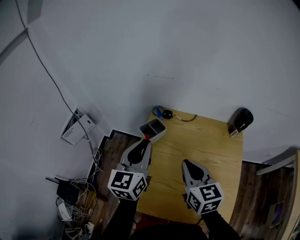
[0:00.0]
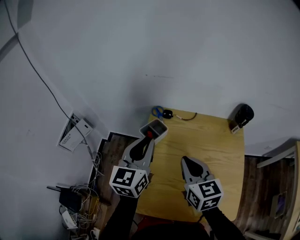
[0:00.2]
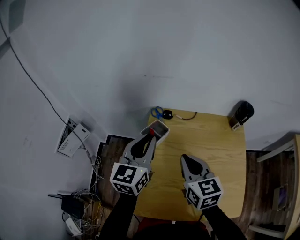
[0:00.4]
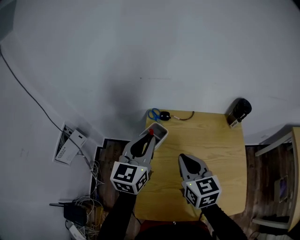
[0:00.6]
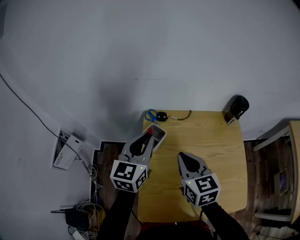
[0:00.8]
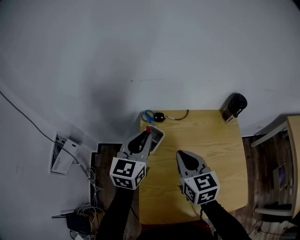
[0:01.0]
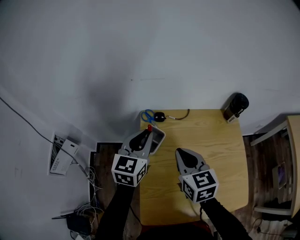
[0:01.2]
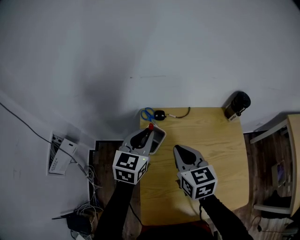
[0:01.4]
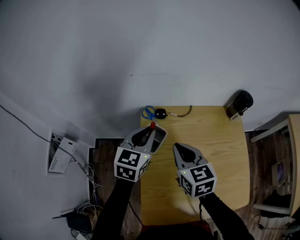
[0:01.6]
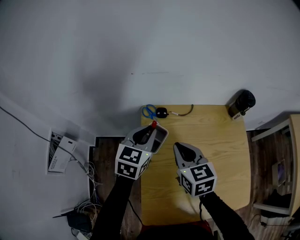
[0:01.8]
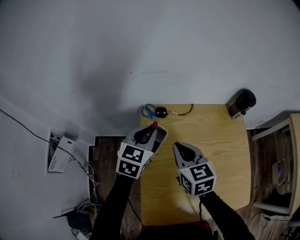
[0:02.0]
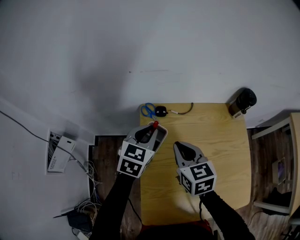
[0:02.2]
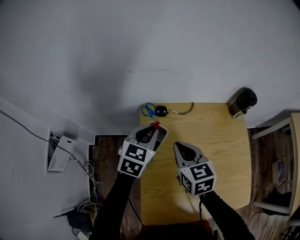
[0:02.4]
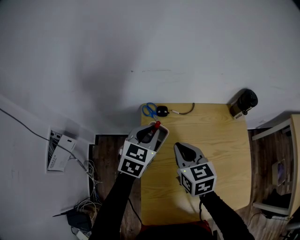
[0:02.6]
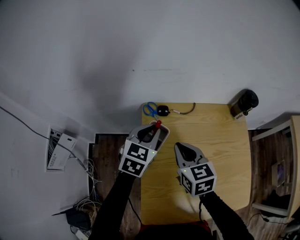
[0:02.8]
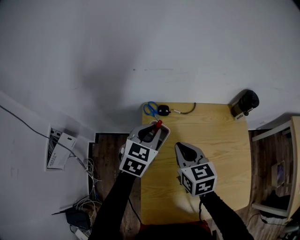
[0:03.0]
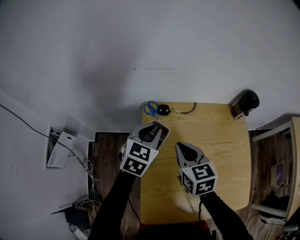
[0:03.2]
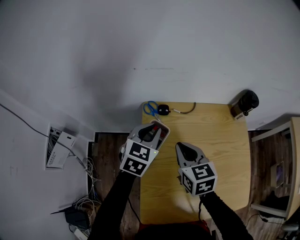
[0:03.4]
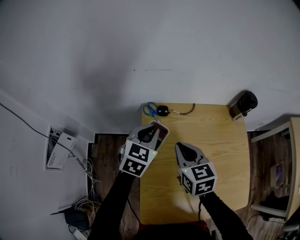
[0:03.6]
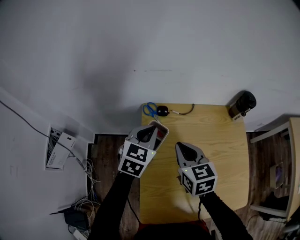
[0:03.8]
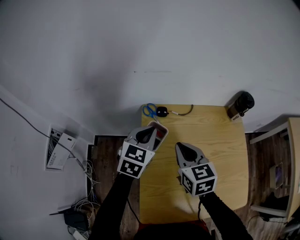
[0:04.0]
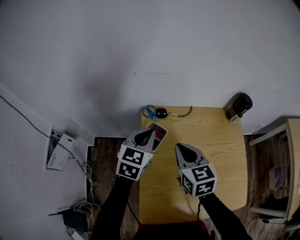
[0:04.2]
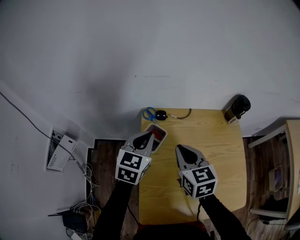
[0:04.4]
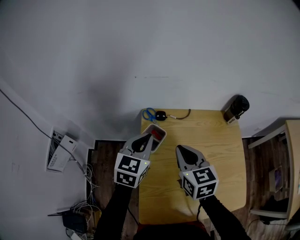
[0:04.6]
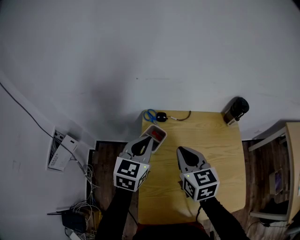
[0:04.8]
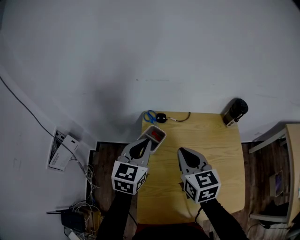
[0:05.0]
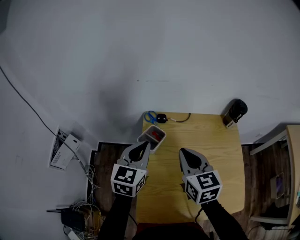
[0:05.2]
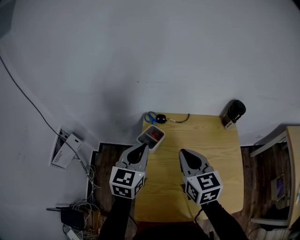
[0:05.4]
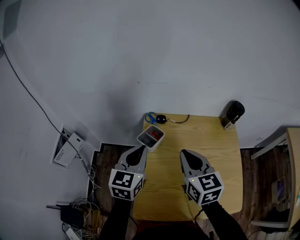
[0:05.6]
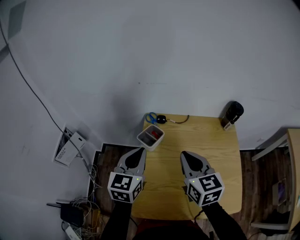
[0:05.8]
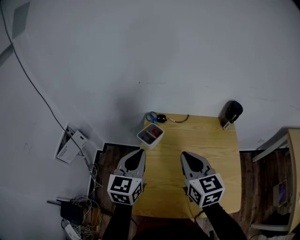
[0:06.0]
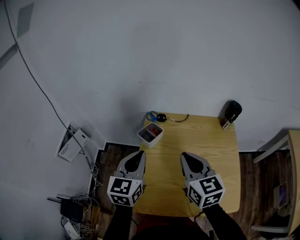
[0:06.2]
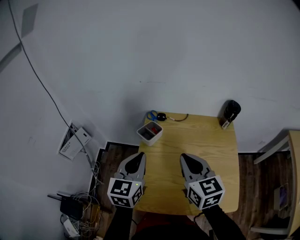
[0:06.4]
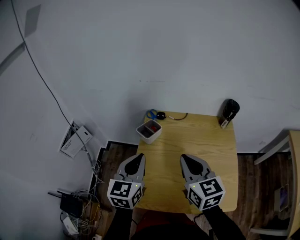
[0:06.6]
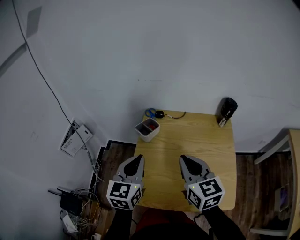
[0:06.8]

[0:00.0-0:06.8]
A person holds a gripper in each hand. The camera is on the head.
0:00.0 to 0:01.4: The left gripper travels forward and downward by about 15 cm, and swivels approximately 30 degrees. The right gripper travels forward and to the left by some 15 cm.
0:01.4 to 0:04.0: The grippers make only small movements.
0:04.0 to 0:05.4: The left gripper heads backward and upward, covering some 10 cm; the right gripper heads upward and backward, covering roughly 10 cm.
0:05.4 to 0:06.8: The left gripper is displaced backward by roughly 15 cm, while the right gripper heads backward and to the right, covering roughly 10 cm.

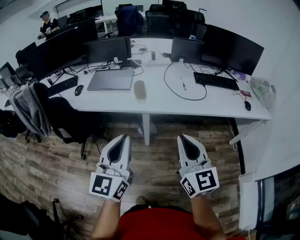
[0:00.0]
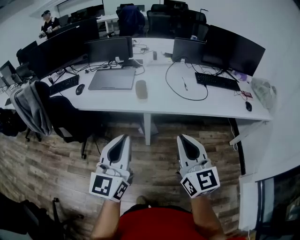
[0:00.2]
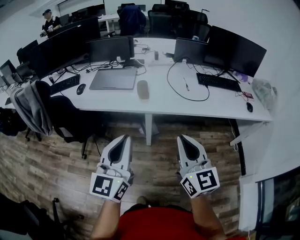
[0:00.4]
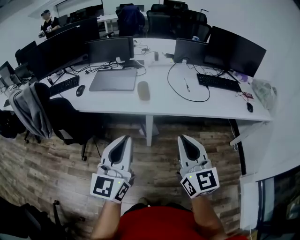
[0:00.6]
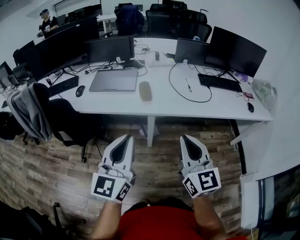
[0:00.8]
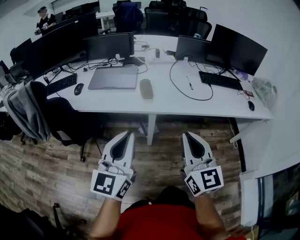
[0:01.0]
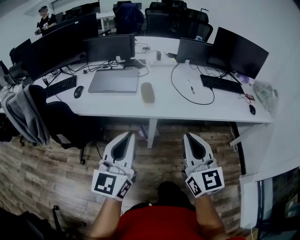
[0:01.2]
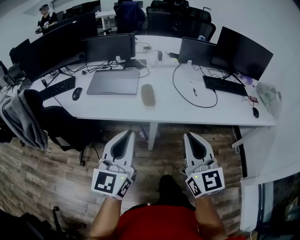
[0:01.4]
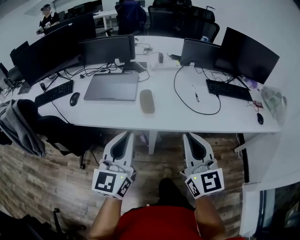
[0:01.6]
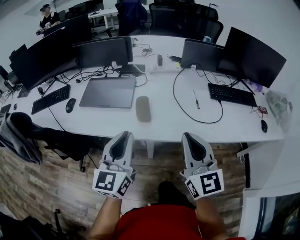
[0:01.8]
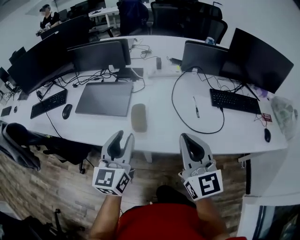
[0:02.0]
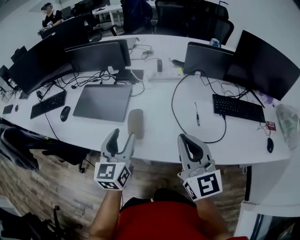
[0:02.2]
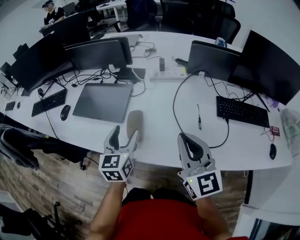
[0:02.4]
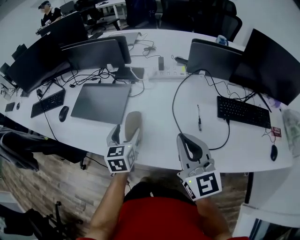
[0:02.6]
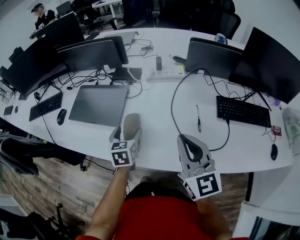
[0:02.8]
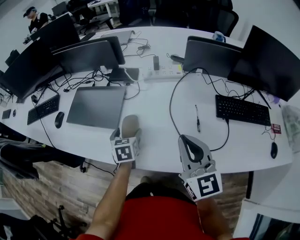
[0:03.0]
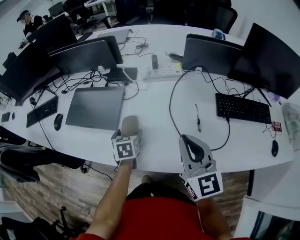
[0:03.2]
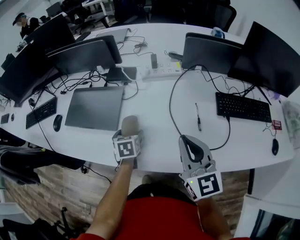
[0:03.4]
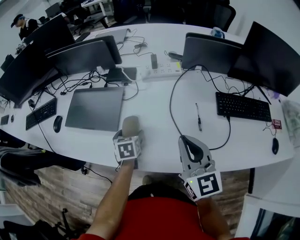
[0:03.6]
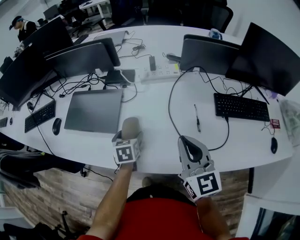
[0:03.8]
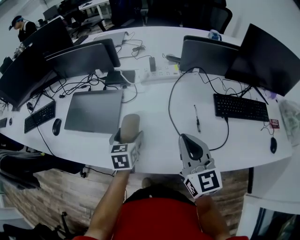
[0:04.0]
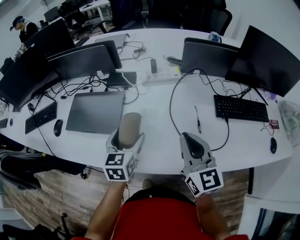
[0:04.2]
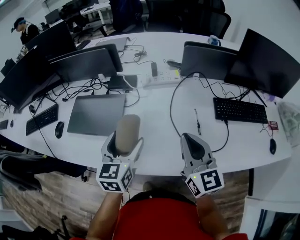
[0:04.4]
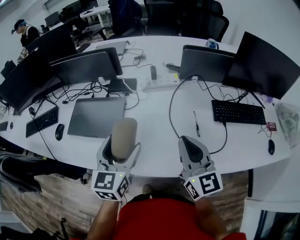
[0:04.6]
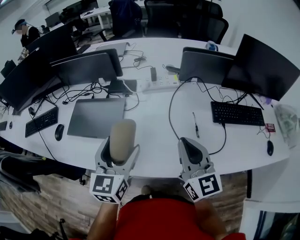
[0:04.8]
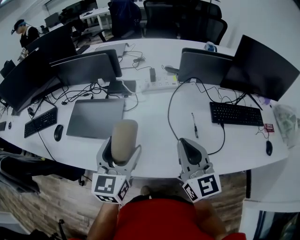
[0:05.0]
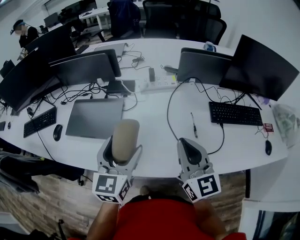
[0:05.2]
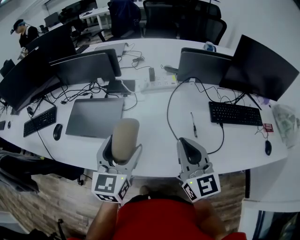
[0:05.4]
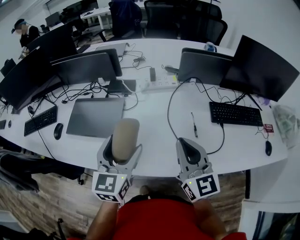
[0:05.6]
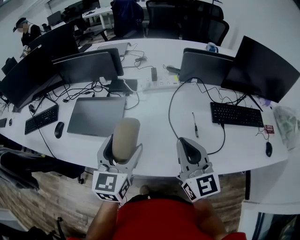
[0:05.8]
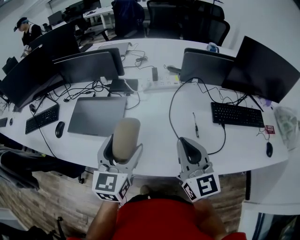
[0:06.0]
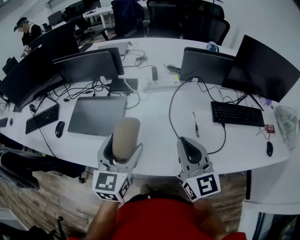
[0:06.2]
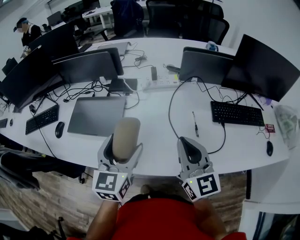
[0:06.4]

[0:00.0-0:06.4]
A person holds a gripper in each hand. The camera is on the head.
0:00.0 to 0:01.6: Both grippers move forward, approximately 15 cm.
0:01.6 to 0:03.2: The right gripper shifts approximately 30 cm forward and to the right. Meanwhile the left gripper heads forward and downward, covering some 40 cm, angles its fingers downward, by some 50 degrees, and opens its fingers.
0:03.2 to 0:04.8: The left gripper moves upward, some 20 cm, and tilts its fingers some 40 degrees upward.
0:04.8 to 0:06.4: Both grippers stay put.

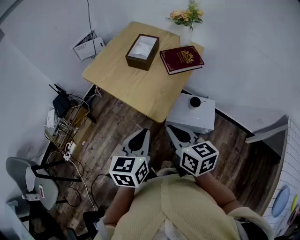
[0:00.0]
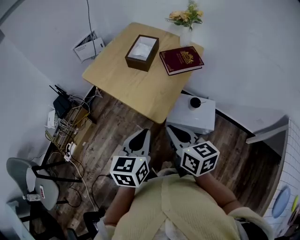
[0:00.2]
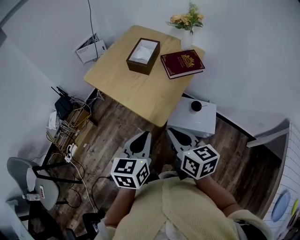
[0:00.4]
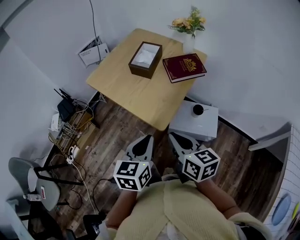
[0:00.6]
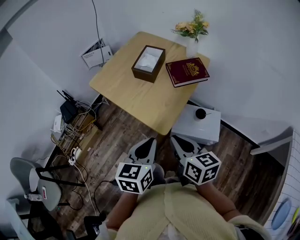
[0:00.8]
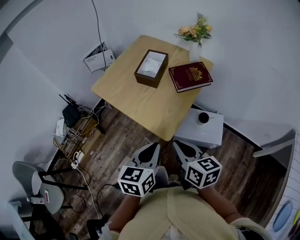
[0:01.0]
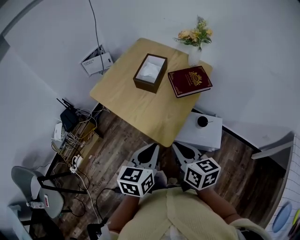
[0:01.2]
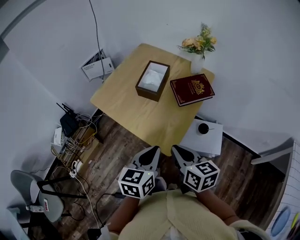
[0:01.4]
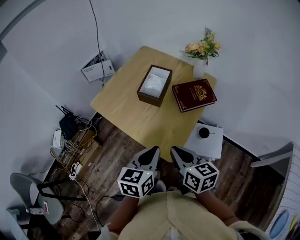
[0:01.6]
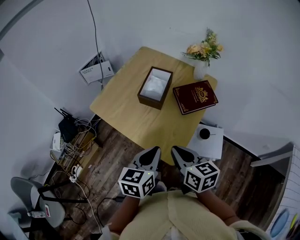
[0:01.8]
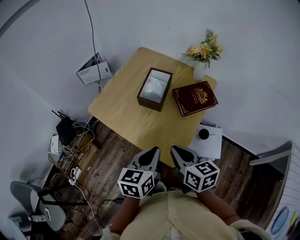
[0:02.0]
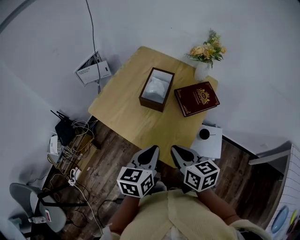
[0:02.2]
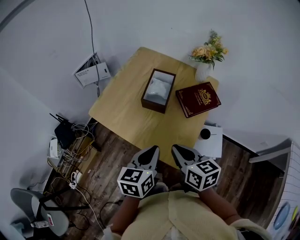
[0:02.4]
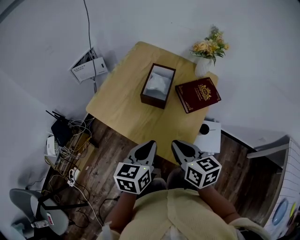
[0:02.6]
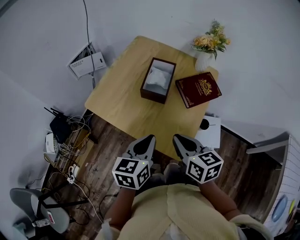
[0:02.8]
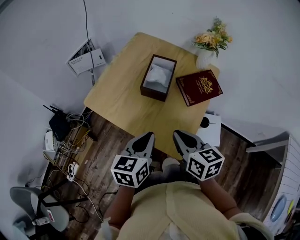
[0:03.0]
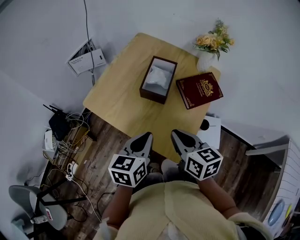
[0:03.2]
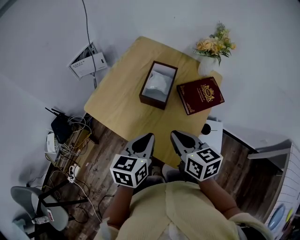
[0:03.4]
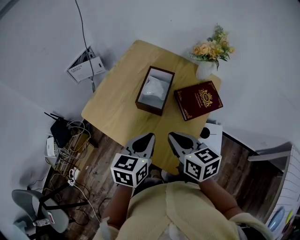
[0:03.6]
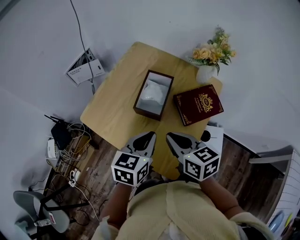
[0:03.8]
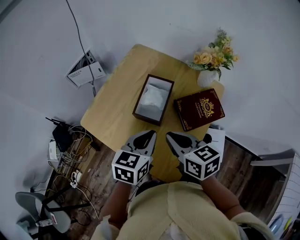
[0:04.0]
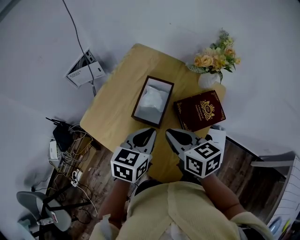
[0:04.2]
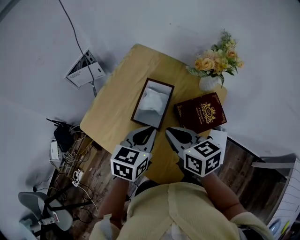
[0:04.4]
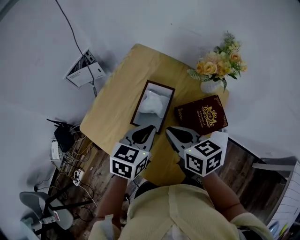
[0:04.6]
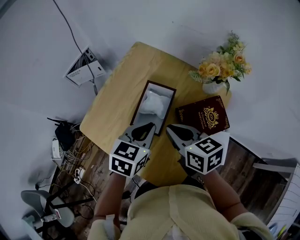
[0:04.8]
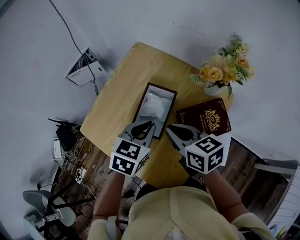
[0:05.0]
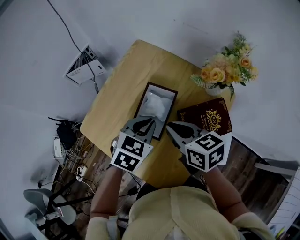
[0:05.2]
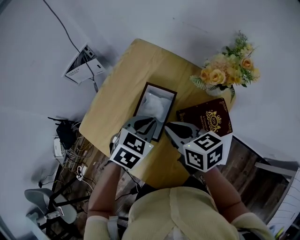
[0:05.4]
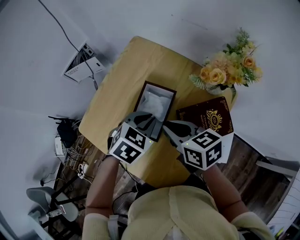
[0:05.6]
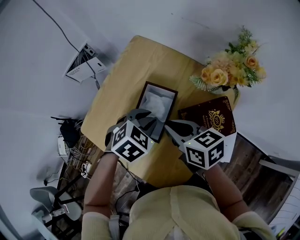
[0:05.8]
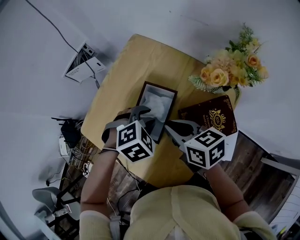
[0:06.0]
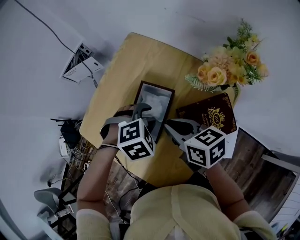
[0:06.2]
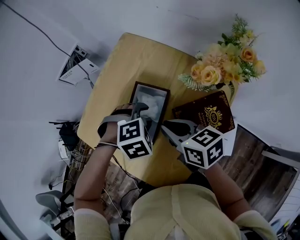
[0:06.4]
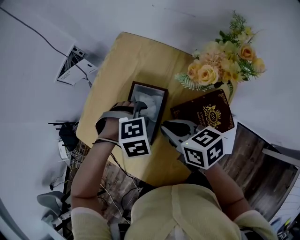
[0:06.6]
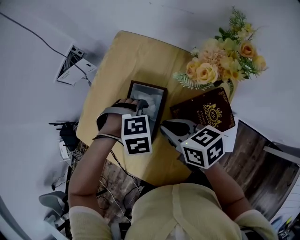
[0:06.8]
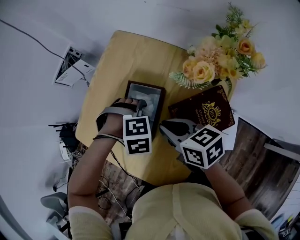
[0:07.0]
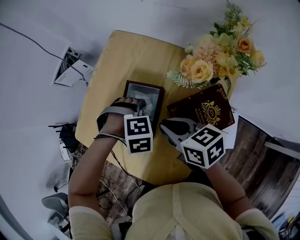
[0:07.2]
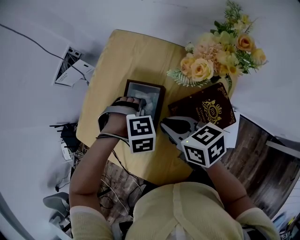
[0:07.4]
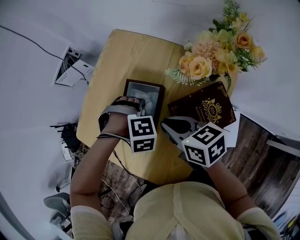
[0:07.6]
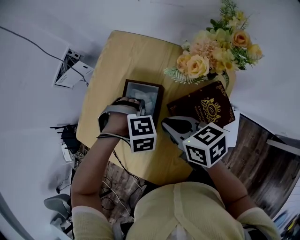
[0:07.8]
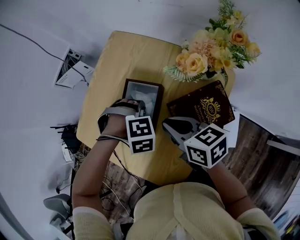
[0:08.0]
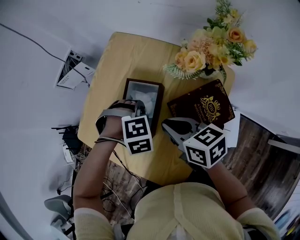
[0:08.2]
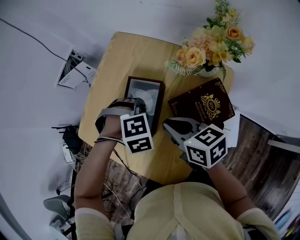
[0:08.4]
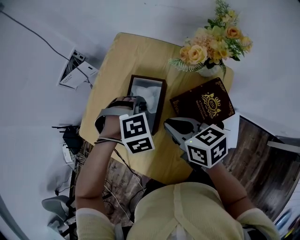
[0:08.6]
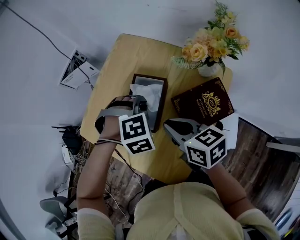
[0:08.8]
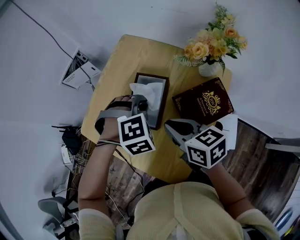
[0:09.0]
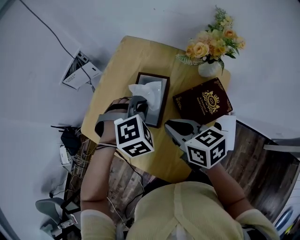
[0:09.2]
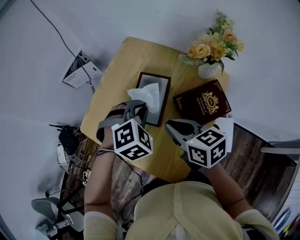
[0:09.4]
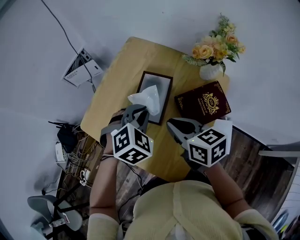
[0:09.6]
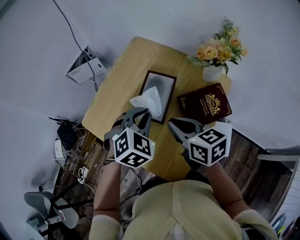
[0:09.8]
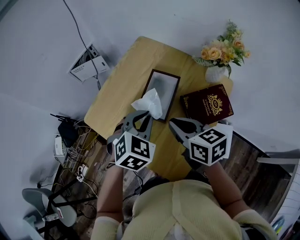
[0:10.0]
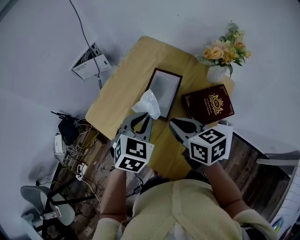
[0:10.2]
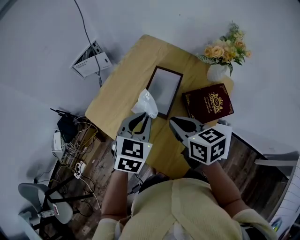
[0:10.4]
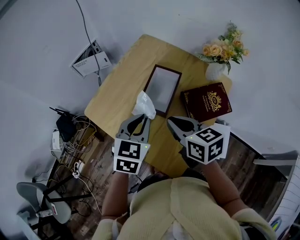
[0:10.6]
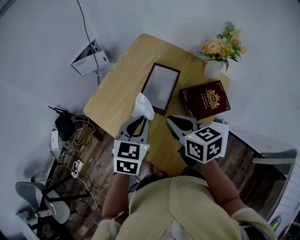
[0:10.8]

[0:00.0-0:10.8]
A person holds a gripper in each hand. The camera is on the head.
0:00.0 to 0:01.6: Both grippers travel together forward, roughly 10 cm.
0:01.6 to 0:03.0: The left gripper travels forward and to the left by approximately 10 cm. The right gripper moves forward, about 5 cm.
0:03.0 to 0:04.6: The grippers both shift forward by about 20 cm.
0:04.6 to 0:06.2: The left gripper is displaced forward and downward by some 10 cm, tips its fingers downward by some 40 degrees, and opens its fingers. Meanwhile the right gripper shifts roughly 5 cm forward.
0:06.2 to 0:07.8: The left gripper shifts roughly 5 cm downward, and rotates some 30 degrees.
0:07.8 to 0:09.2: The left gripper travels upward by approximately 10 cm, and rotates roughly 30 degrees, while the right gripper ends up about 5 cm from where it was.
0:09.2 to 0:10.8: The right gripper changes place by some 5 cm. Meanwhile the left gripper moves backward and to the left, some 15 cm, and rotates around the line of its fingers by some 60 degrees, counterclockwise from behind.
